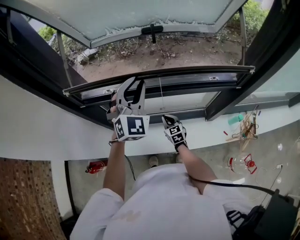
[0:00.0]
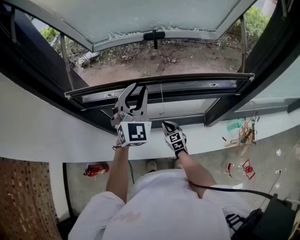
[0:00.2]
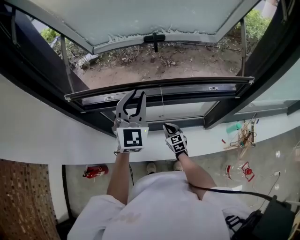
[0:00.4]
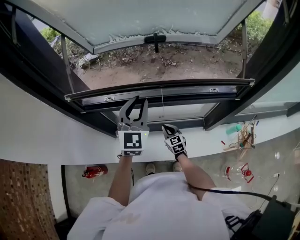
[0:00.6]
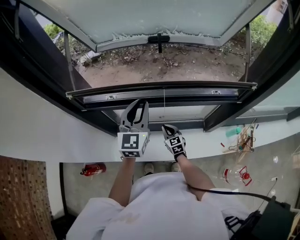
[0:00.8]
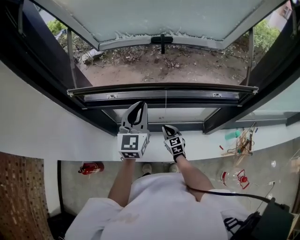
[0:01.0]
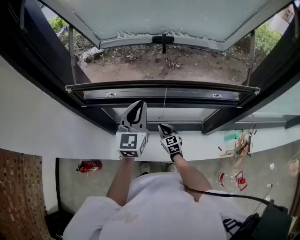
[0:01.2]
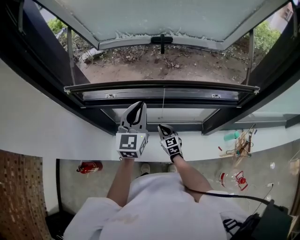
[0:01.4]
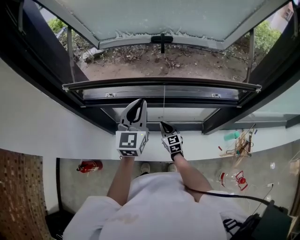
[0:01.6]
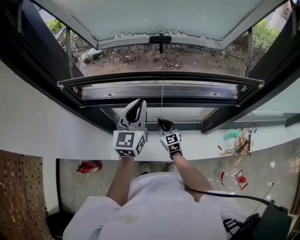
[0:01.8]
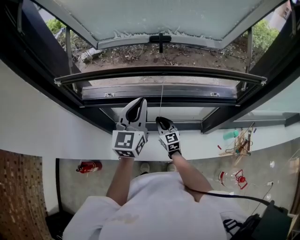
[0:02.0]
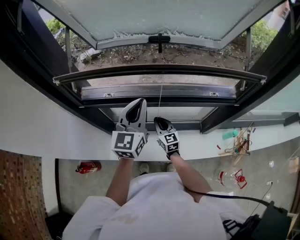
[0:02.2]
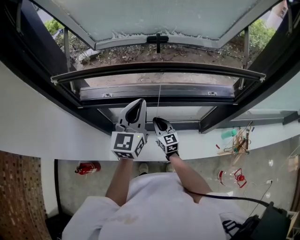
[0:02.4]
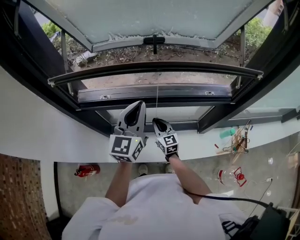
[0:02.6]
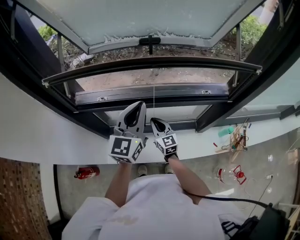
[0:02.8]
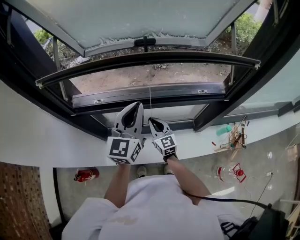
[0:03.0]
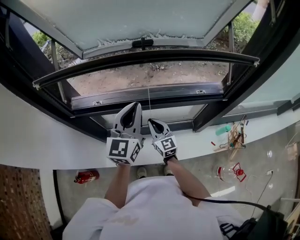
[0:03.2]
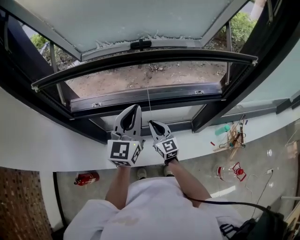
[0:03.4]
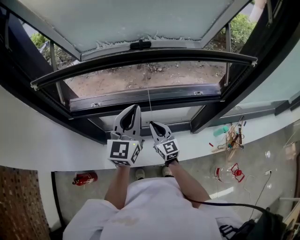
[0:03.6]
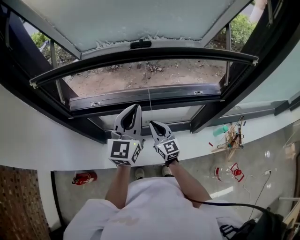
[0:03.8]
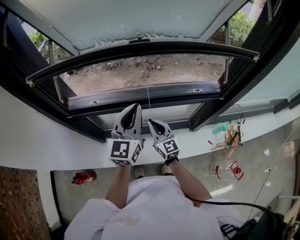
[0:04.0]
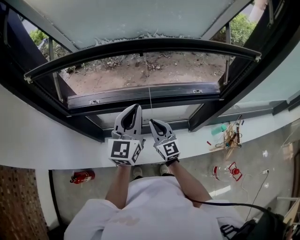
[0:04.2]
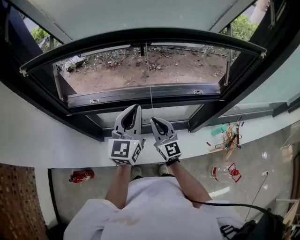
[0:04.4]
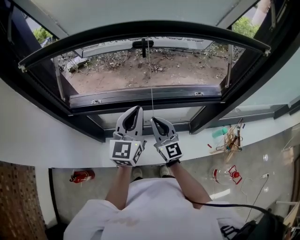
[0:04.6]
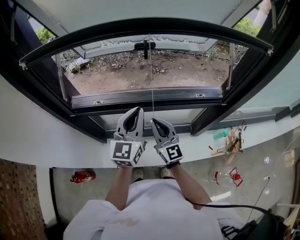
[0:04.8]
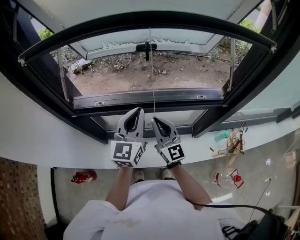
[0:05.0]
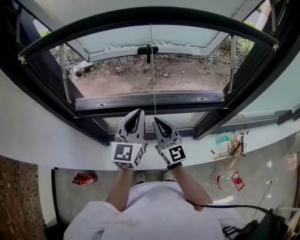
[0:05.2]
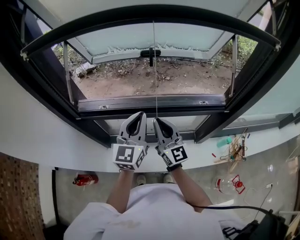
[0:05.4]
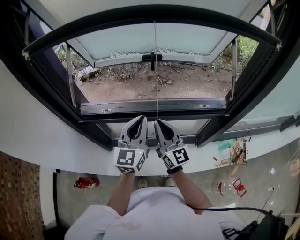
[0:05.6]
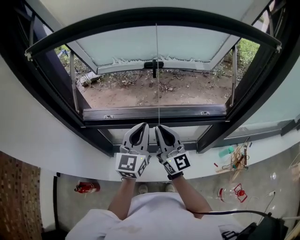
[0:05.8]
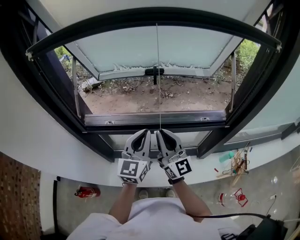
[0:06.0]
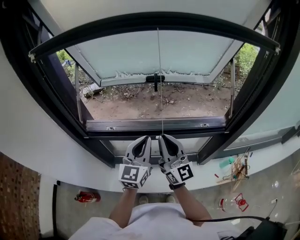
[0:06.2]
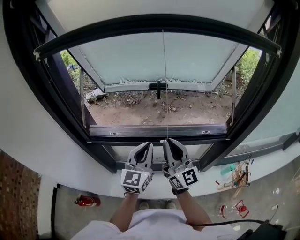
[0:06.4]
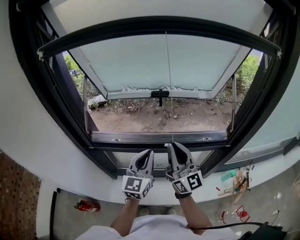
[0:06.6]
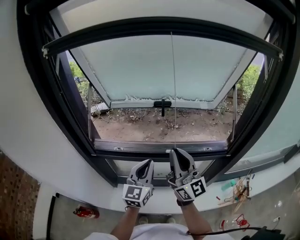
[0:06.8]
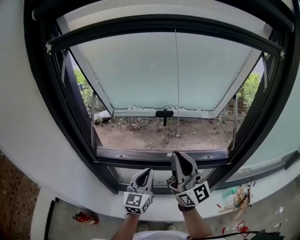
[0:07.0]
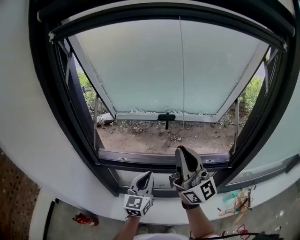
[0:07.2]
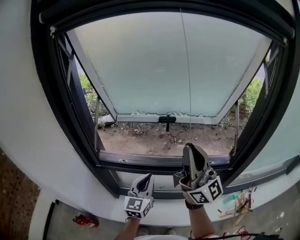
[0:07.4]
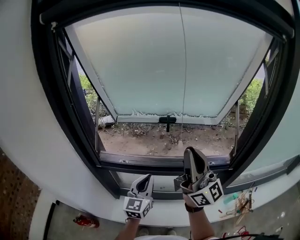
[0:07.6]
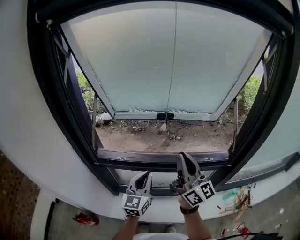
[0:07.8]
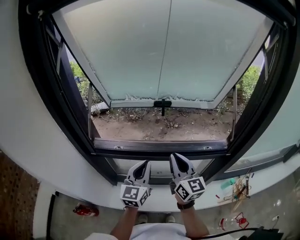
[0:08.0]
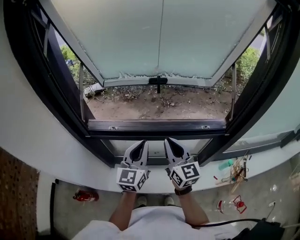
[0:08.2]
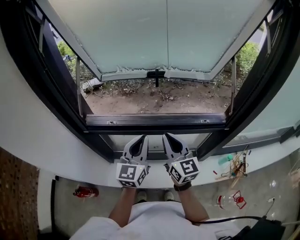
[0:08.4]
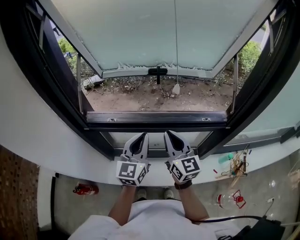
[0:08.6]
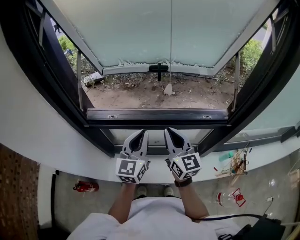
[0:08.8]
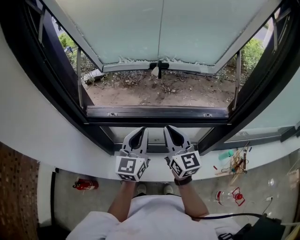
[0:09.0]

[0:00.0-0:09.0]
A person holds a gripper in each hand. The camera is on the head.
0:00.0 to 0:01.6: The left gripper twists about 40 degrees counterclockwise, seen from behind.
0:01.6 to 0:03.0: The left gripper ends up some 5 cm from where it was. Meanwhile the right gripper goes about 10 cm upward.
0:03.0 to 0:04.4: The right gripper shifts some 10 cm upward.
0:04.4 to 0:06.0: The right gripper heads upward, covering some 15 cm, and turns by approximately 20 degrees.
0:06.0 to 0:07.6: The right gripper travels upward by roughly 20 cm, and swivels some 20 degrees.
0:07.6 to 0:09.0: The right gripper goes about 20 cm downward, and points its fingers approximately 40 degrees further downward.

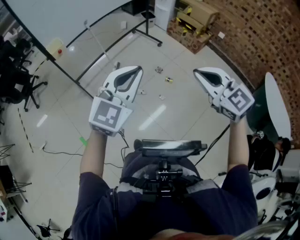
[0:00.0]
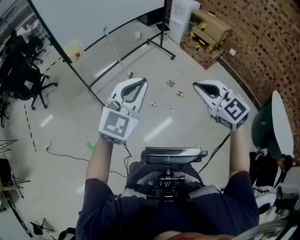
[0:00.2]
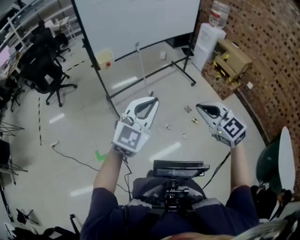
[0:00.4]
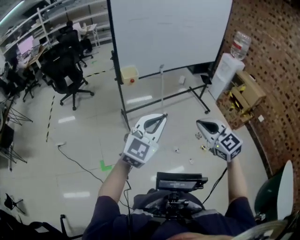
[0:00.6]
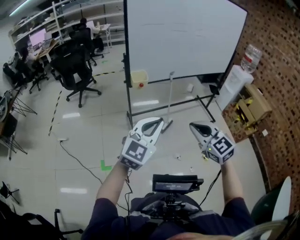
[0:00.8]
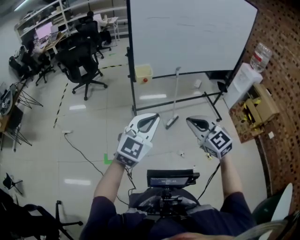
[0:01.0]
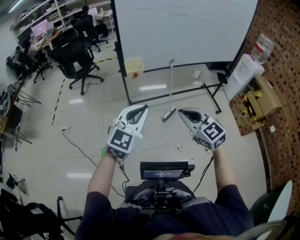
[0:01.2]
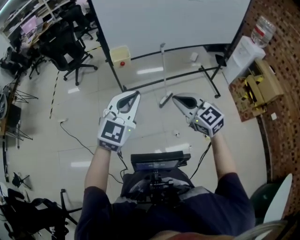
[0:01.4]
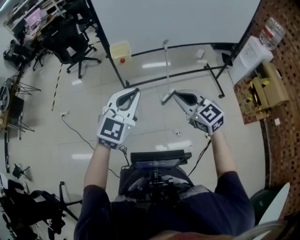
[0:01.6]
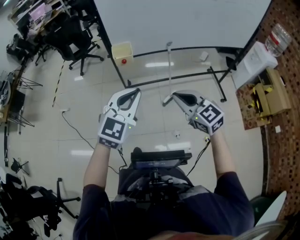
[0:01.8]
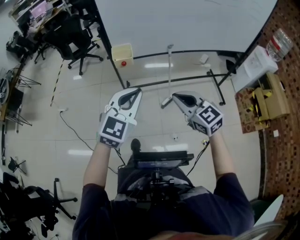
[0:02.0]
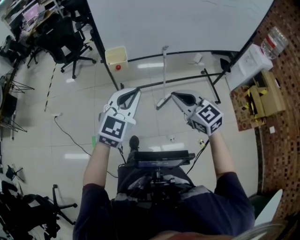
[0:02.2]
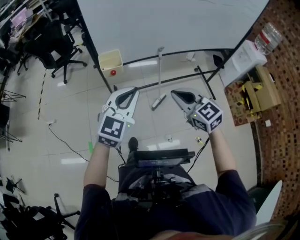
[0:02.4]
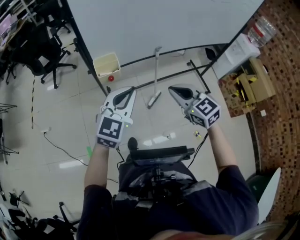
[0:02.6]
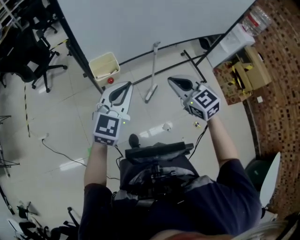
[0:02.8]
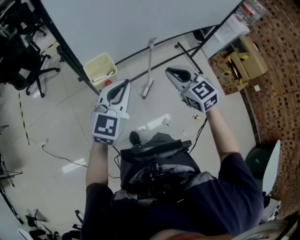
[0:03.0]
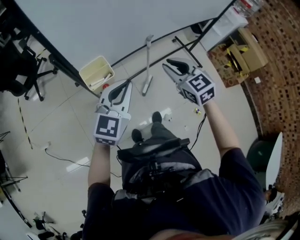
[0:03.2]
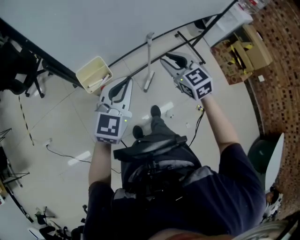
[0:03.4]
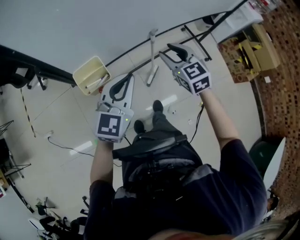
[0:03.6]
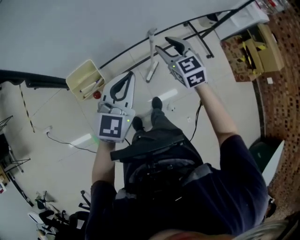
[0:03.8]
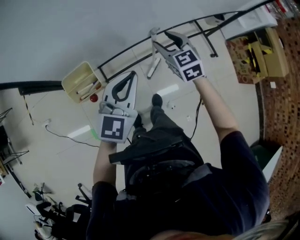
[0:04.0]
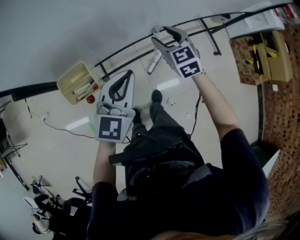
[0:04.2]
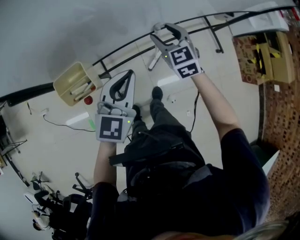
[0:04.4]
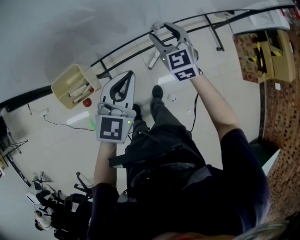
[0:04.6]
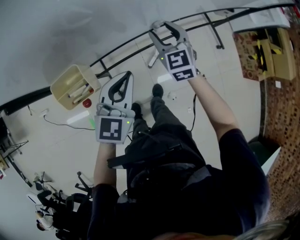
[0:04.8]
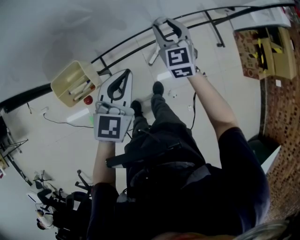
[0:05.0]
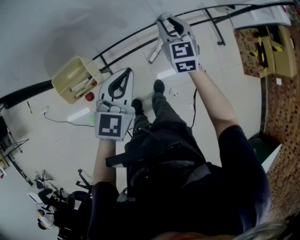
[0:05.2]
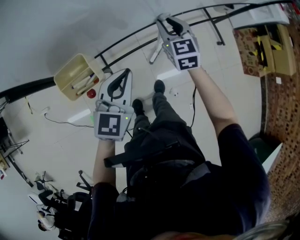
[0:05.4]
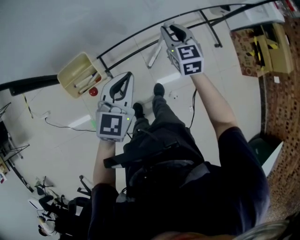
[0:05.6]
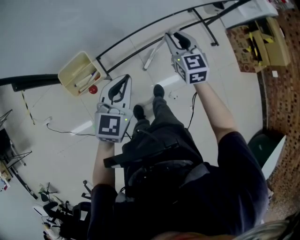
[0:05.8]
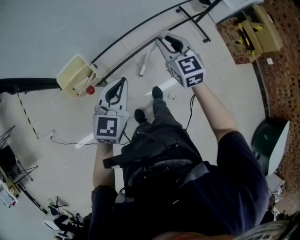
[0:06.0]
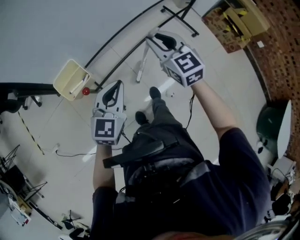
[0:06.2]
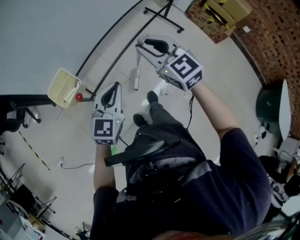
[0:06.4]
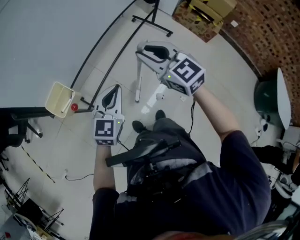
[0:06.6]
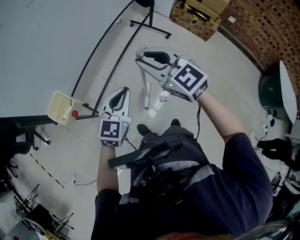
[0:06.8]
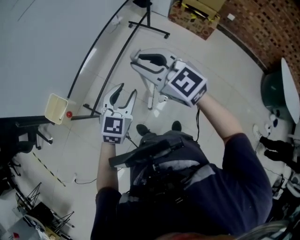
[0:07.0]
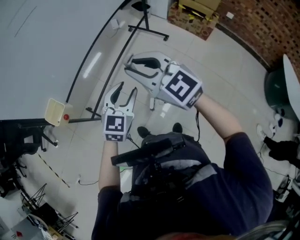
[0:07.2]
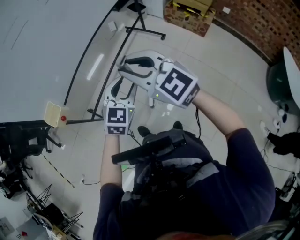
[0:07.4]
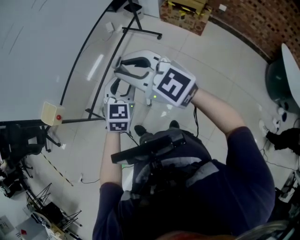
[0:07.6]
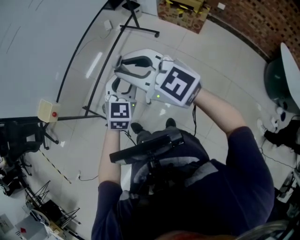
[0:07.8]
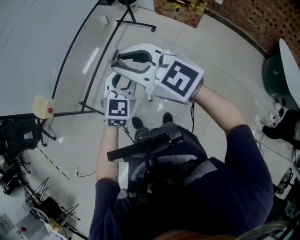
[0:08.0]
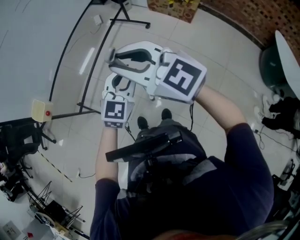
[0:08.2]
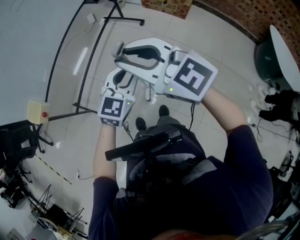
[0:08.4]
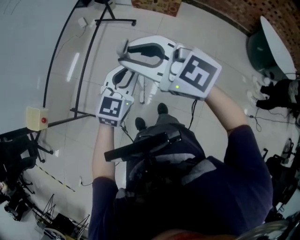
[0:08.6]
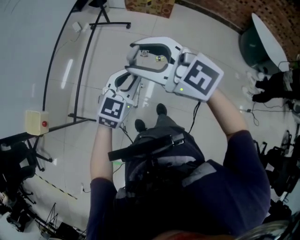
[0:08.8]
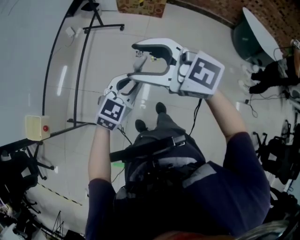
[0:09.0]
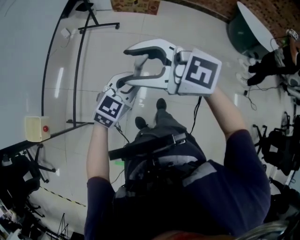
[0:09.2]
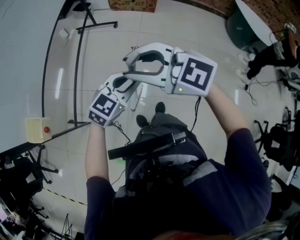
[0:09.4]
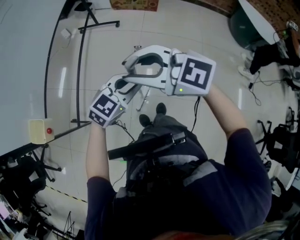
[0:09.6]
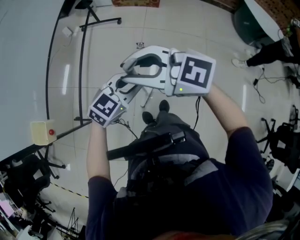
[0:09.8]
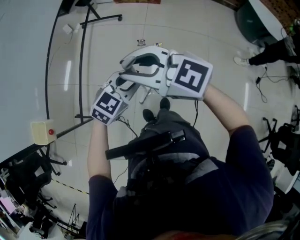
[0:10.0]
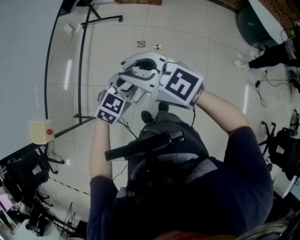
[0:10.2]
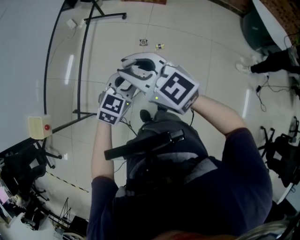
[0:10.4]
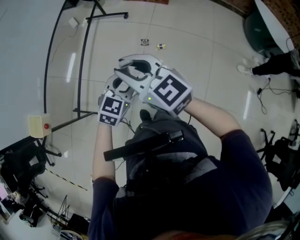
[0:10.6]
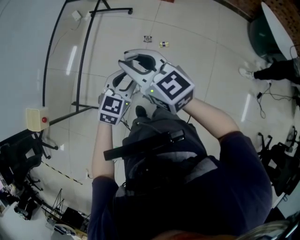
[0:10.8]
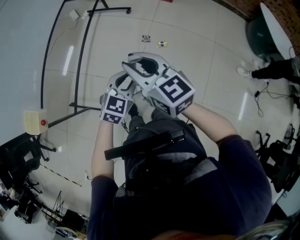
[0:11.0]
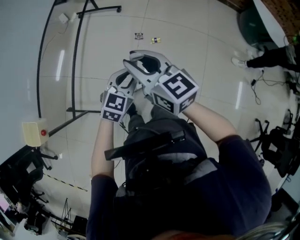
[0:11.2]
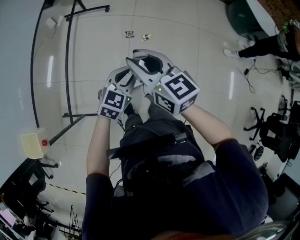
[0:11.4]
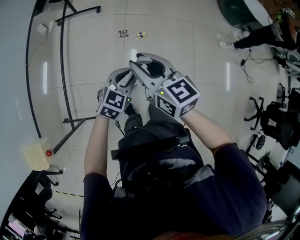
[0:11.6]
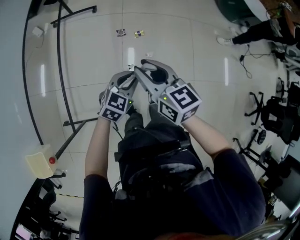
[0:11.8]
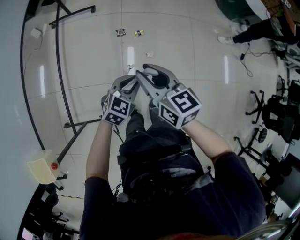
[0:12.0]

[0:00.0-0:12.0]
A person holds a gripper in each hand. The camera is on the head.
0:00.0 to 0:01.6: The right gripper changes place by approximately 40 cm, and rotates approximately 30 degrees; the left gripper changes place by approximately 35 cm, and swivels approximately 40 degrees.
0:01.6 to 0:03.0: Both grippers travel together forward, some 25 cm. The right gripper turns by approximately 20 degrees.
0:03.0 to 0:04.4: The left gripper moves forward, downward and to the right, approximately 20 cm. The right gripper goes some 30 cm forward and downward, and opens its fingers.
0:04.4 to 0:06.0: The left gripper shifts some 5 cm backward. The right gripper goes roughly 10 cm backward and upward, and closes.
0:06.0 to 0:07.6: The left gripper shifts about 35 cm to the right, swivels roughly 30 degrees, and opens up. The right gripper travels backward, to the right and upward by about 40 cm.
0:07.6 to 0:09.0: The right gripper changes place by some 10 cm, and opens. The left gripper shifts by approximately 15 cm, rotates some 40 degrees, and closes.
0:09.0 to 0:10.4: The two grippers go some 5 cm downward. The right gripper closes its fingers.
0:10.4 to 0:12.0: Both grippers move downward, roughly 15 cm. The right gripper rotates roughly 50 degrees.

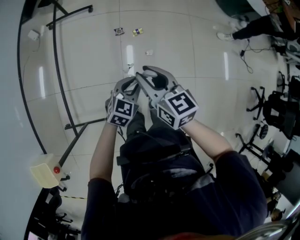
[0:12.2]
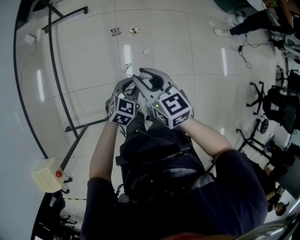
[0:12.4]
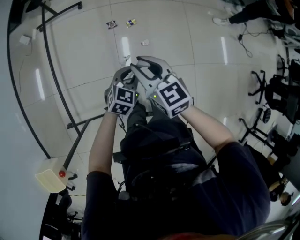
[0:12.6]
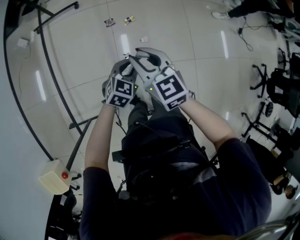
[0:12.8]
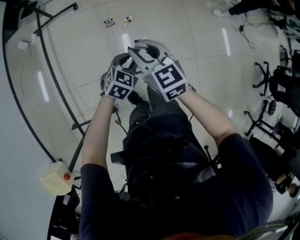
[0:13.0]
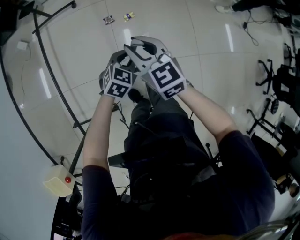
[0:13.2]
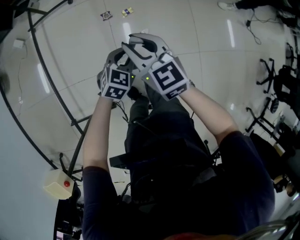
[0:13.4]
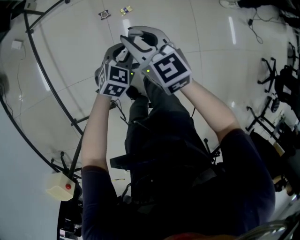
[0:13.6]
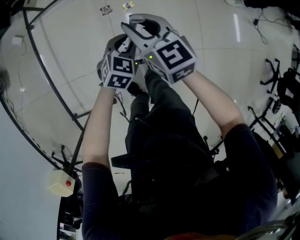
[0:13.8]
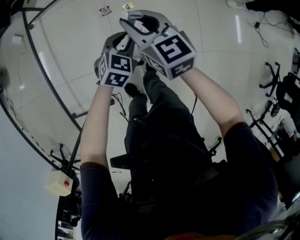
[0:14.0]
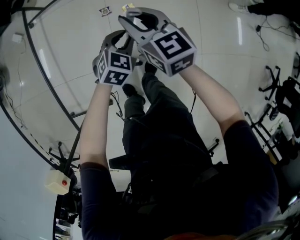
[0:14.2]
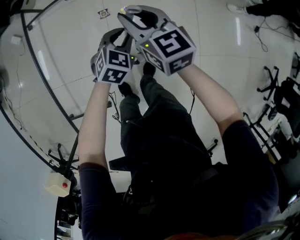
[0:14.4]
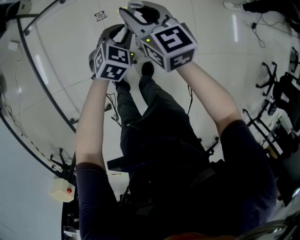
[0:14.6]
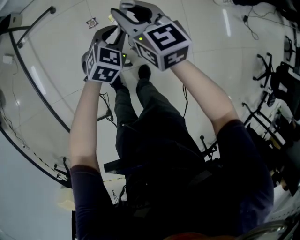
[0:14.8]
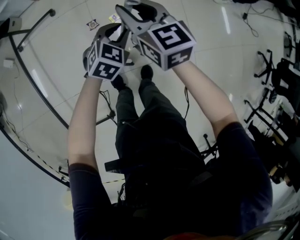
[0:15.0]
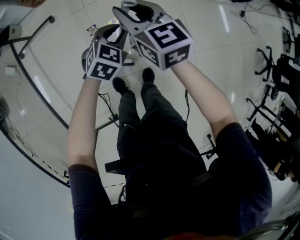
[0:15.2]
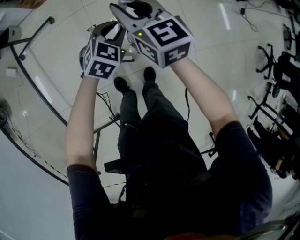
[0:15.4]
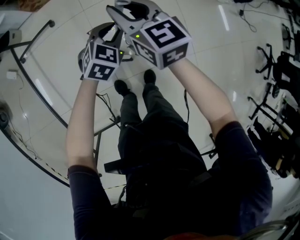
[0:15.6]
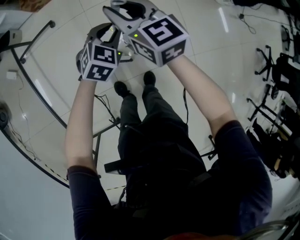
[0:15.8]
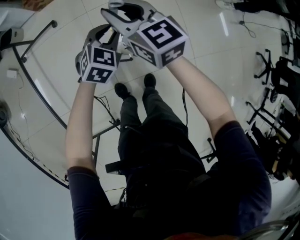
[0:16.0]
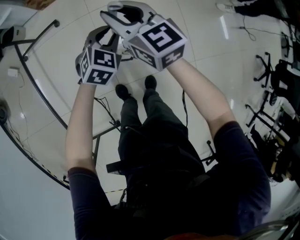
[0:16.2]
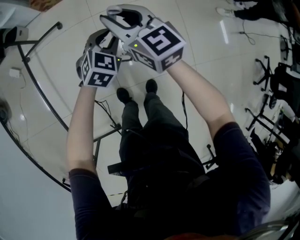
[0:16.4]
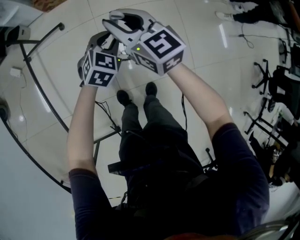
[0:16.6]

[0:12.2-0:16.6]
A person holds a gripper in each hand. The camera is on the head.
0:12.2 to 0:13.6: The grippers both shift forward and downward by some 15 cm.
0:13.6 to 0:15.2: Both grippers move forward, approximately 20 cm.
0:15.2 to 0:16.6: Both grippers travel together to the left, approximately 10 cm.
